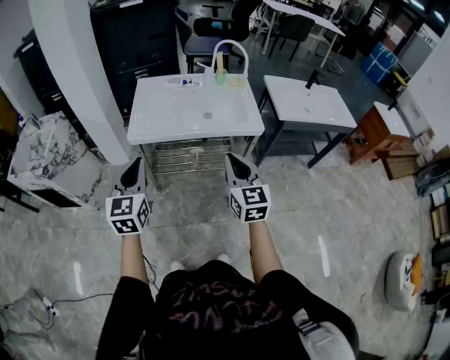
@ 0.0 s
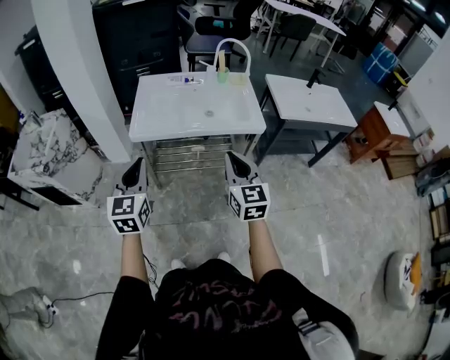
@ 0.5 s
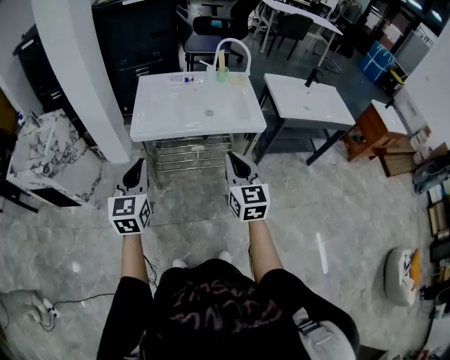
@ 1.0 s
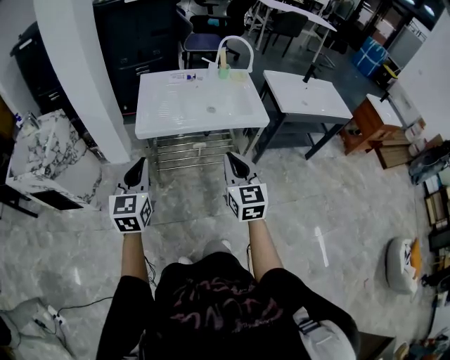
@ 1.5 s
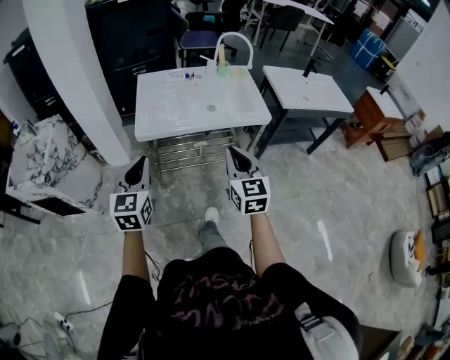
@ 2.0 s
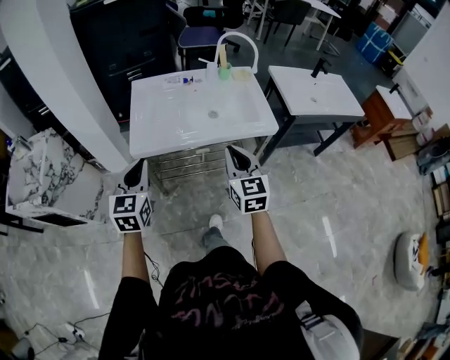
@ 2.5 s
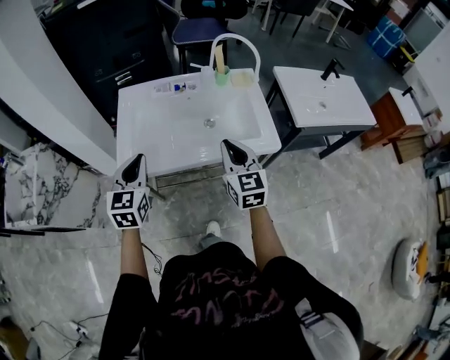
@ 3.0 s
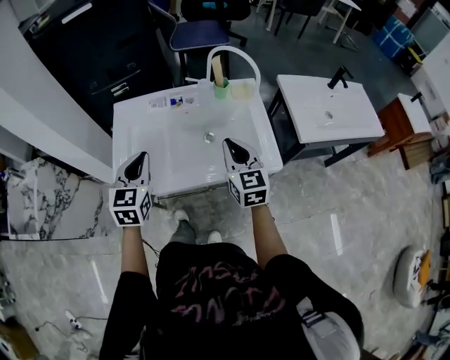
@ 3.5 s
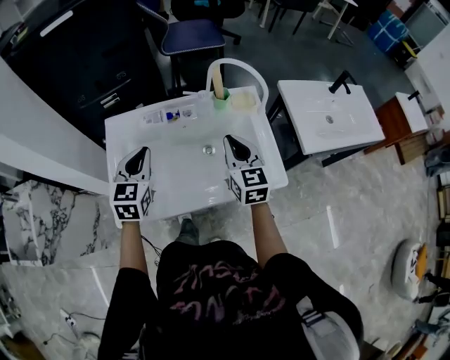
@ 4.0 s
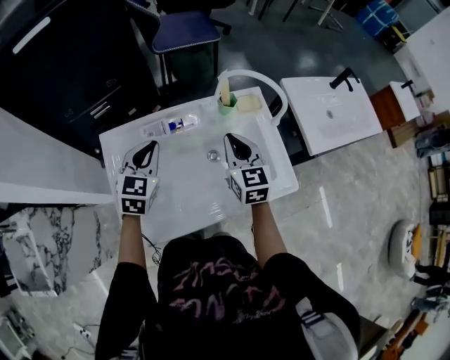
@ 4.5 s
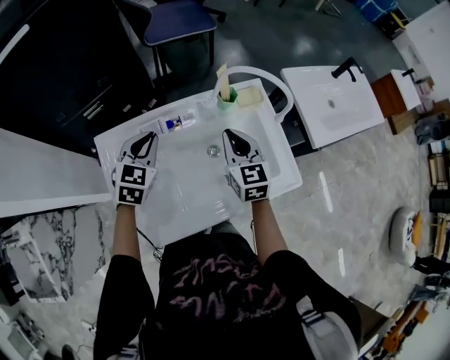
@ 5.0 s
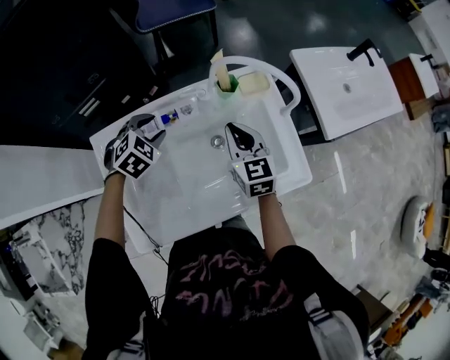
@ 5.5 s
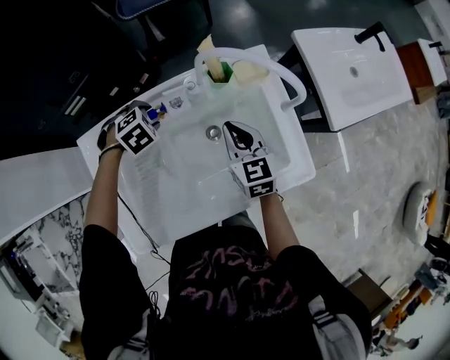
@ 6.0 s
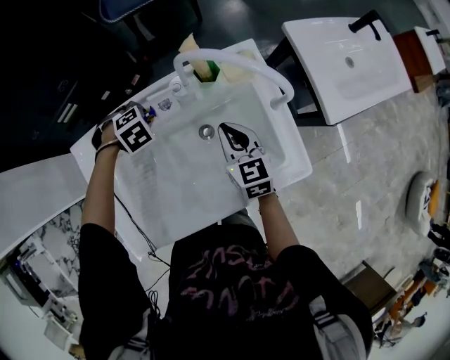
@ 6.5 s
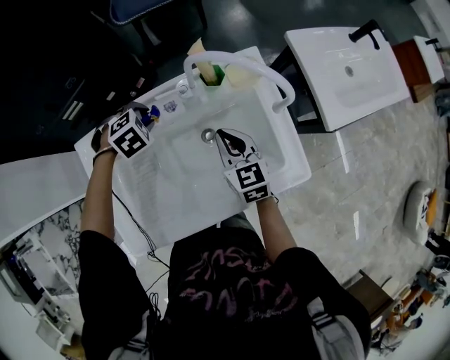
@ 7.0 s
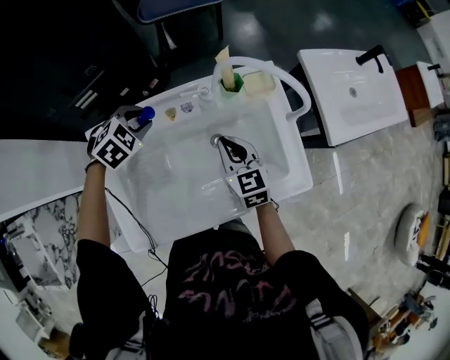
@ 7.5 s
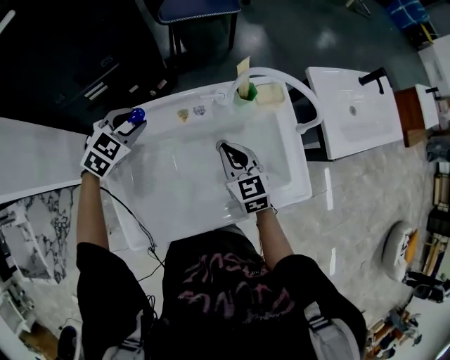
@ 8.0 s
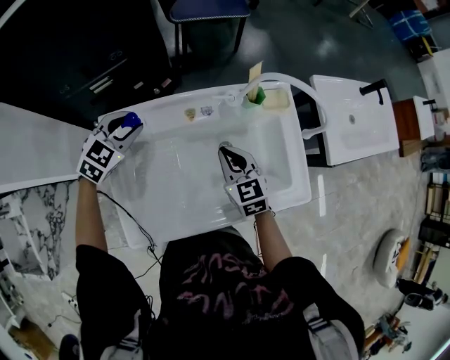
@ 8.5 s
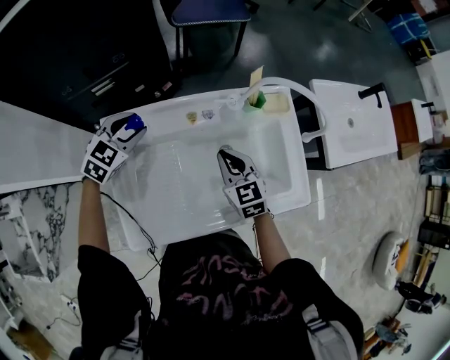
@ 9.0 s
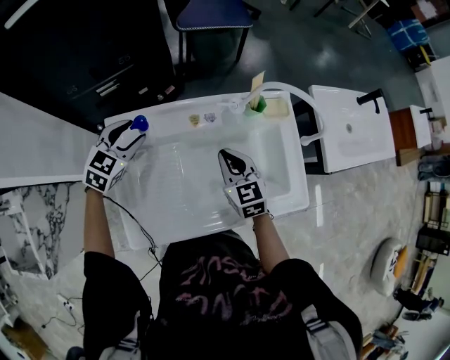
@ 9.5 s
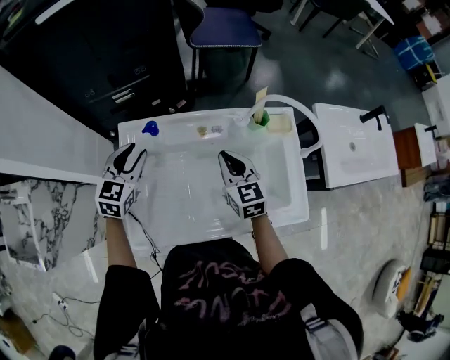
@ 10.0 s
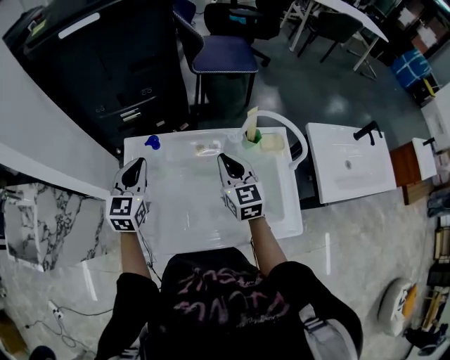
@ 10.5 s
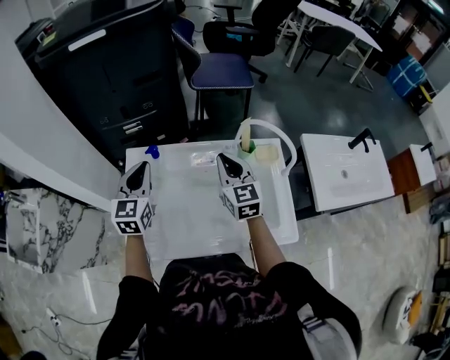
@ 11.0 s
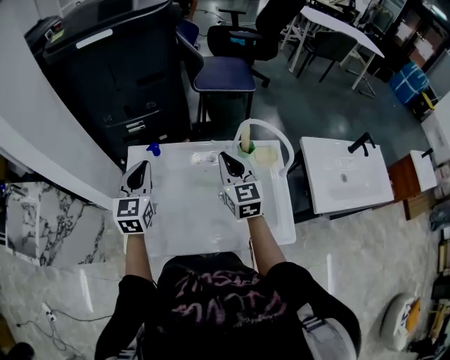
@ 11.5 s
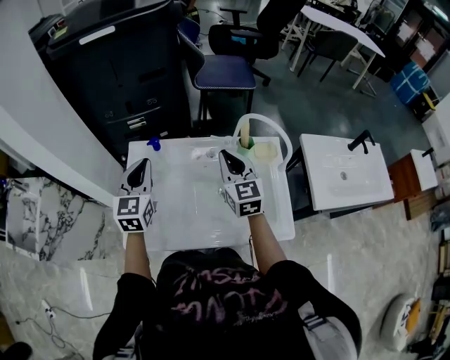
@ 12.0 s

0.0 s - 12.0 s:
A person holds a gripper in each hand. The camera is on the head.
0.0 s - 2.0 s: Both grippers travel together to the left, roughly 10 cm.
2.0 s - 4.0 s: The pair of grippers is taken forward, about 50 cm.
4.0 s - 6.0 s: The left gripper heads downward, covering approximately 25 cm, tilts its fingers roughly 50 degrees downward, and opens. The right gripper travels downward by about 15 cm.
6.0 s - 8.0 s: The right gripper moves approximately 10 cm; the left gripper moves upward, roughly 10 cm, and angles its fingers upward, by about 30 degrees.
8.0 s - 10.0 s: The left gripper goes approximately 10 cm backward and to the left, and swivels approximately 40 degrees; the right gripper changes place by about 5 cm.
10.0 s - 12.0 s: The left gripper heads upward and backward, covering approximately 15 cm, swivels some 20 degrees, and closes its fingers. Meanwhile the right gripper shifts some 10 cm upward.

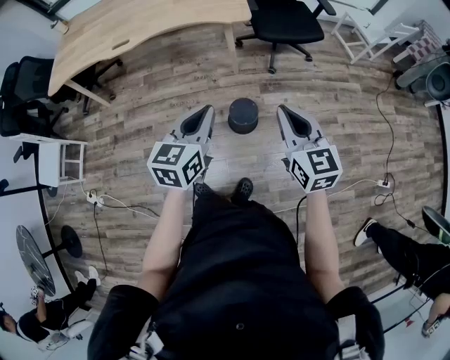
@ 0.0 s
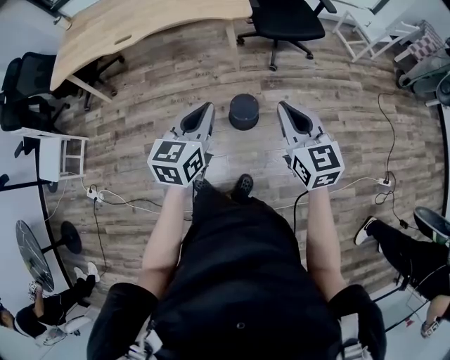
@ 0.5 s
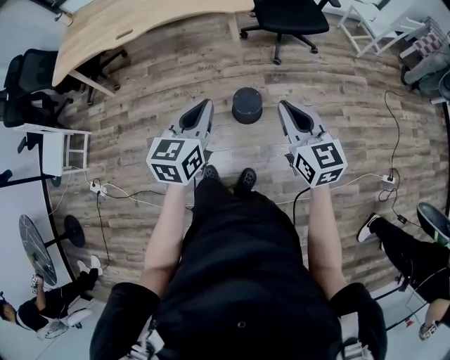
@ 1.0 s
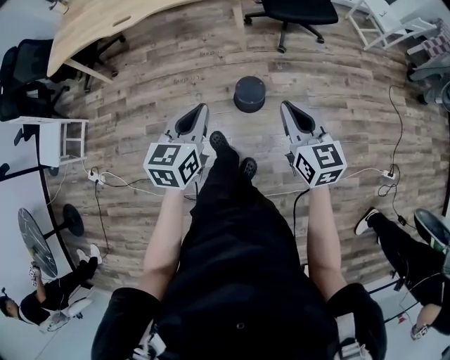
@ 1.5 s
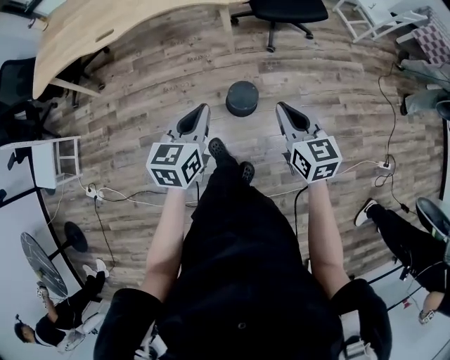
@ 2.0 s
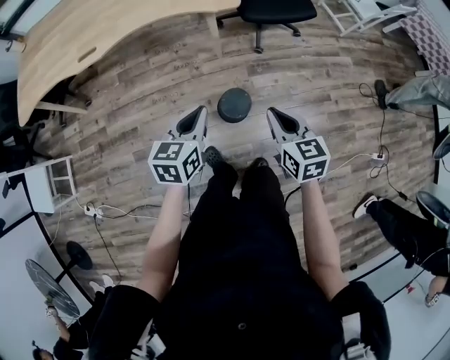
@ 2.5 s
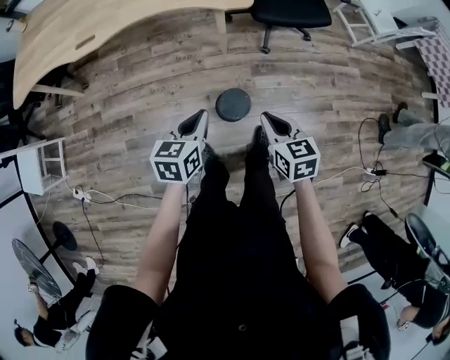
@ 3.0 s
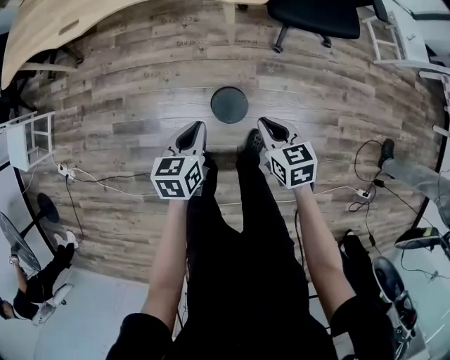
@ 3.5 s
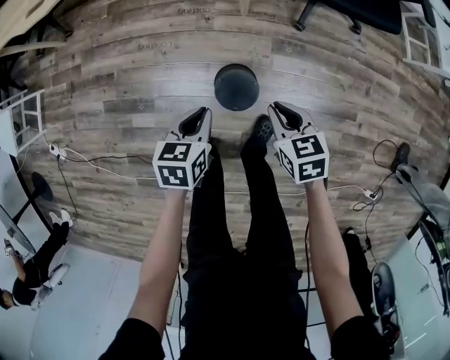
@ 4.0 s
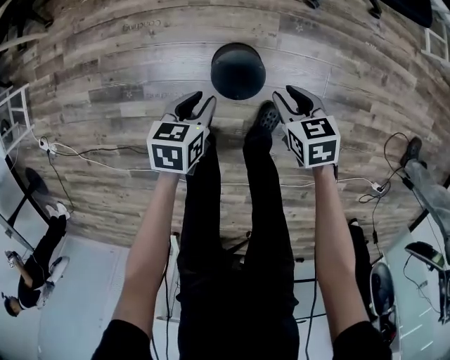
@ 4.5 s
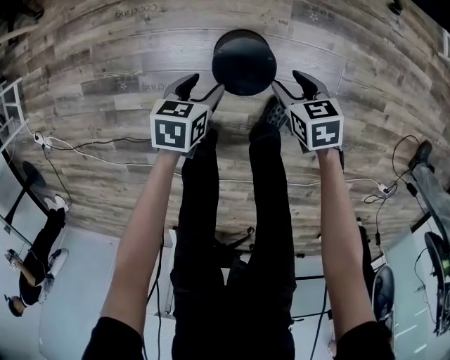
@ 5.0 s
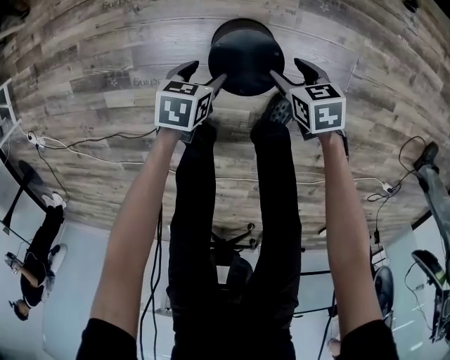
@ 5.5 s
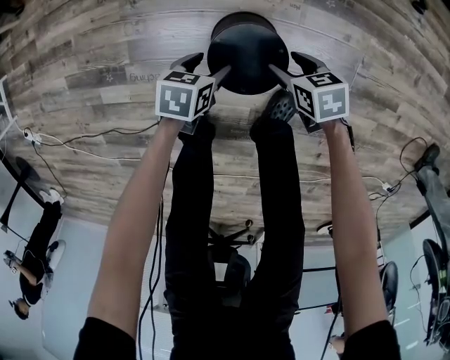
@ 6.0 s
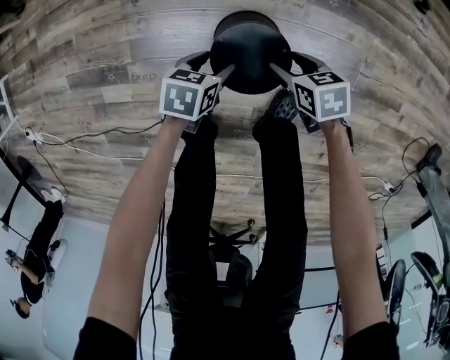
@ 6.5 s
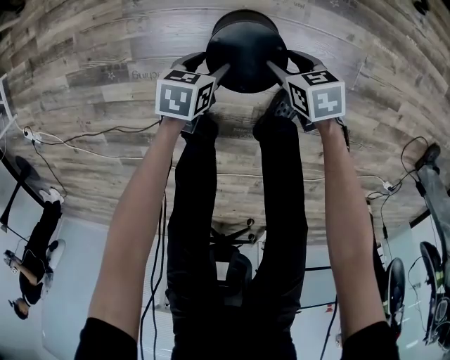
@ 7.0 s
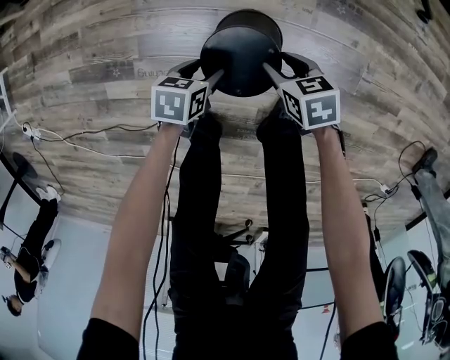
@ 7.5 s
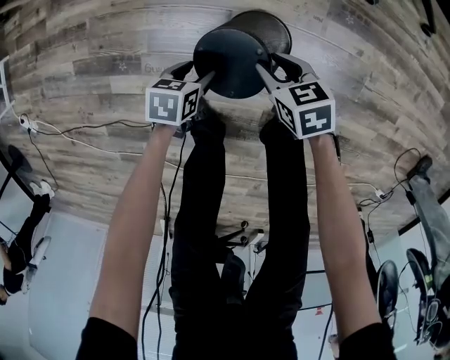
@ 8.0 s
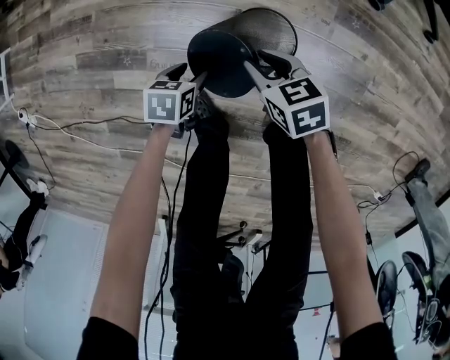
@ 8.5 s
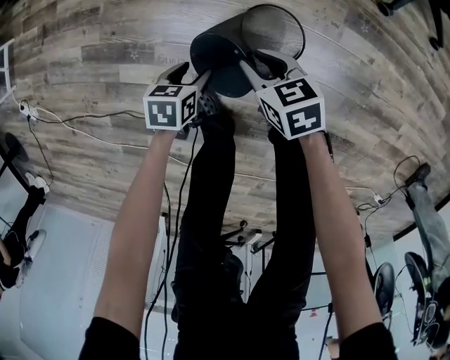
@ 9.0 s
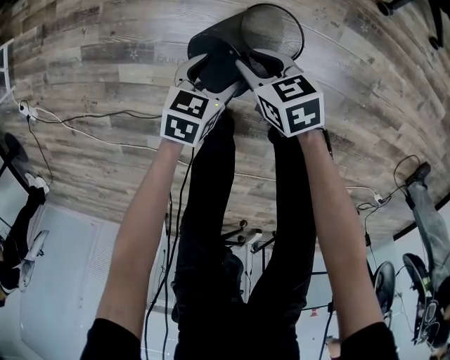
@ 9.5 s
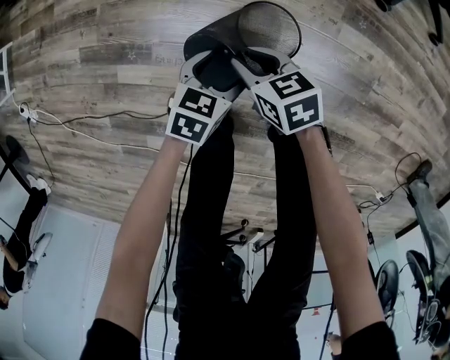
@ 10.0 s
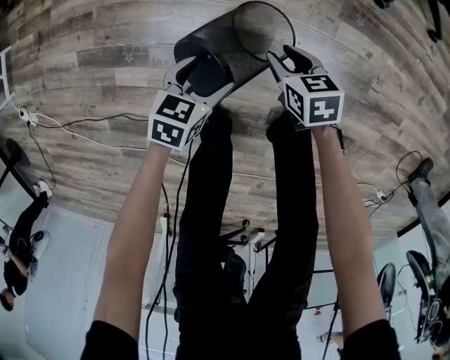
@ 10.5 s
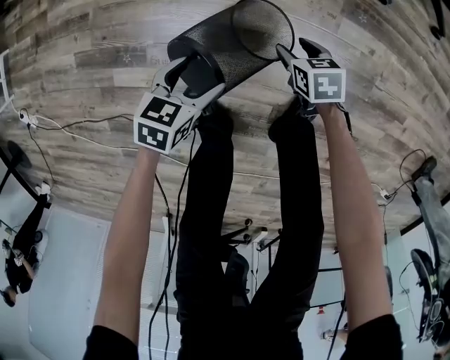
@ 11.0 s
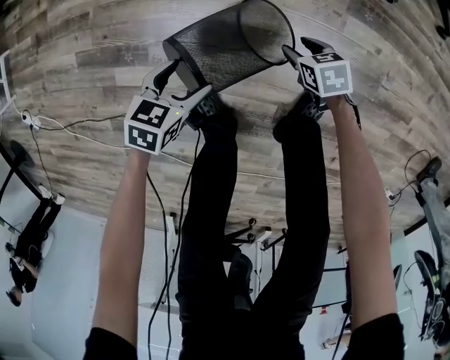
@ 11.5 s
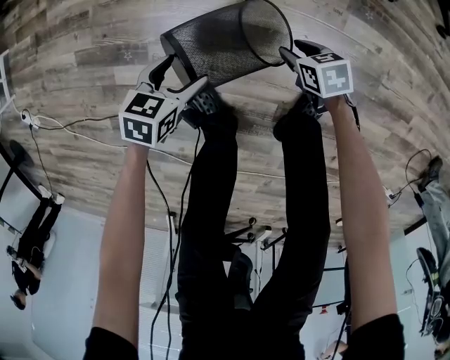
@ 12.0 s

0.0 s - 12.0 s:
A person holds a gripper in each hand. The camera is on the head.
0.0 s - 2.0 s: The two grippers go roughly 5 cm downward.
2.0 s - 4.0 s: The right gripper moves downward and forward, roughly 35 cm, and changes its angle by roughly 30 degrees, while the left gripper goes approximately 35 cm downward, and rotates some 30 degrees.
4.0 s - 6.0 s: Both grippers travel together downward, about 35 cm. The left gripper opens; the right gripper rotates some 20 degrees, and opens.
6.0 s - 8.0 s: The left gripper ends up about 10 cm from where it was. The right gripper changes place by some 15 cm, and closes.
8.0 s - 10.0 s: The right gripper shifts by some 10 cm. The left gripper goes approximately 5 cm upward.
10.0 s - 12.0 s: The right gripper heads downward, covering about 15 cm, while the left gripper ends up about 10 cm from where it was.

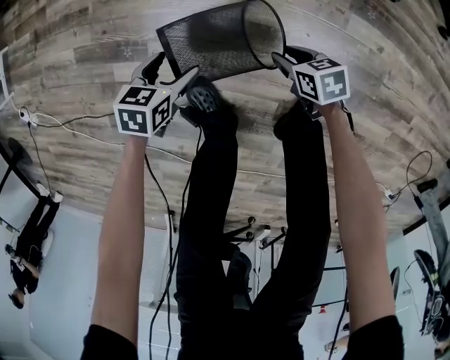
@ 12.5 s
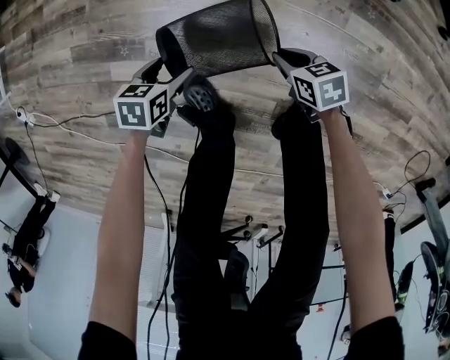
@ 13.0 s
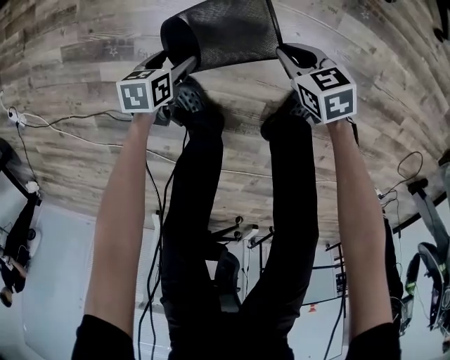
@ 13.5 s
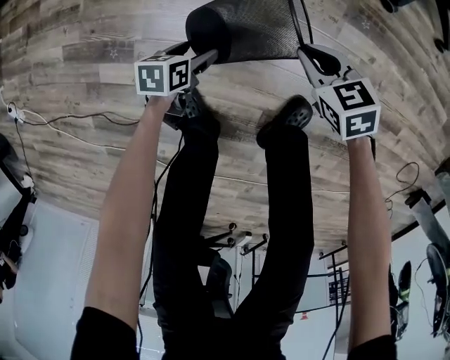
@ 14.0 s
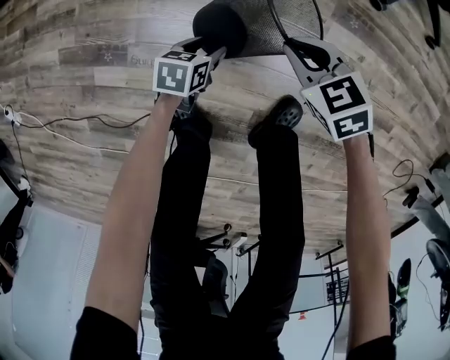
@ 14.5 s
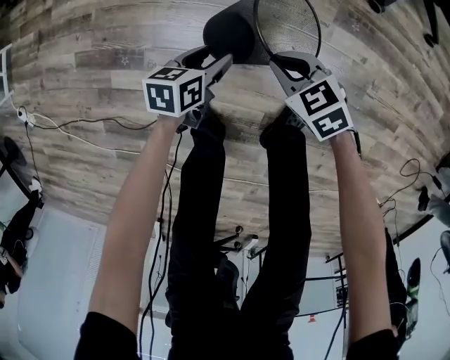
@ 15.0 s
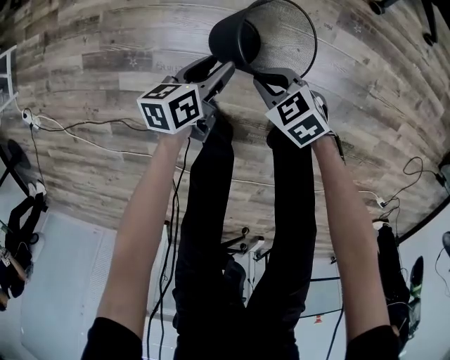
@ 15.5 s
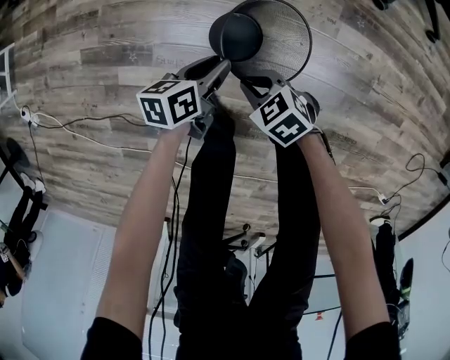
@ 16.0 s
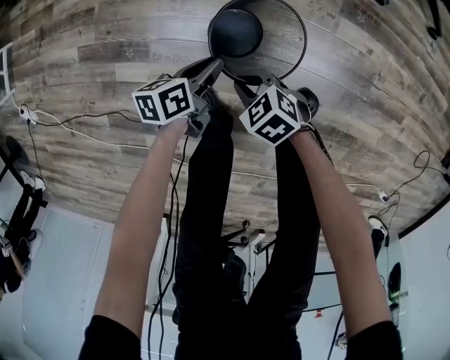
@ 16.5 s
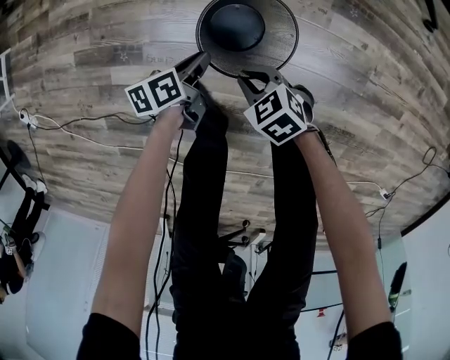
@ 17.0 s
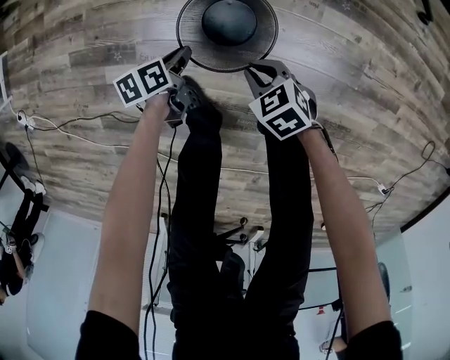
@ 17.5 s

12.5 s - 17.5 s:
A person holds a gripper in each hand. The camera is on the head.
12.5 s - 15.0 s: The right gripper travels upward by some 10 cm, rotates about 30 degrees, and closes its fingers; the left gripper moves about 10 cm downward and comes back, and closes its fingers.
15.0 s - 17.5 s: The left gripper changes place by roughly 5 cm, turns by about 20 degrees, and closes up.
